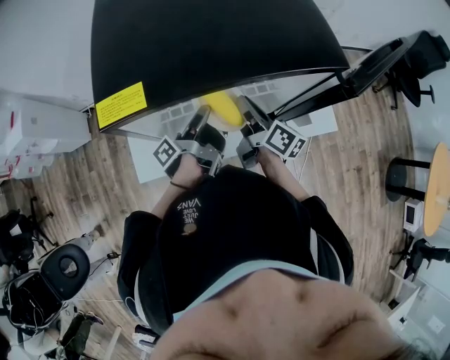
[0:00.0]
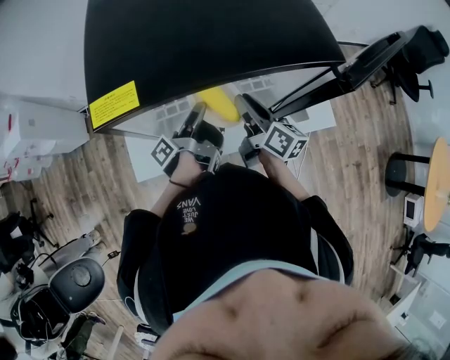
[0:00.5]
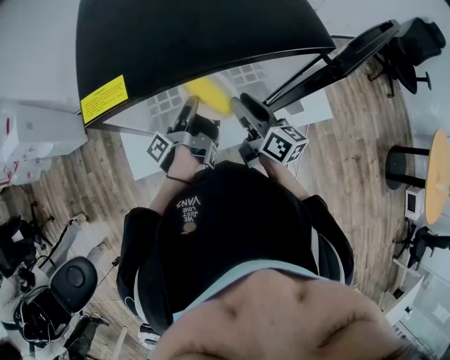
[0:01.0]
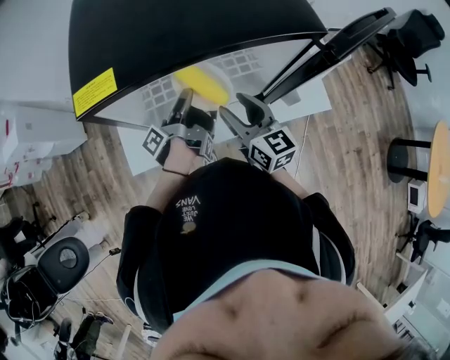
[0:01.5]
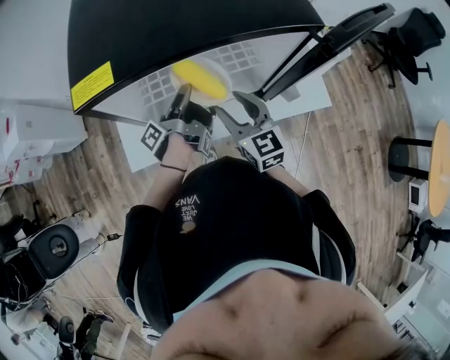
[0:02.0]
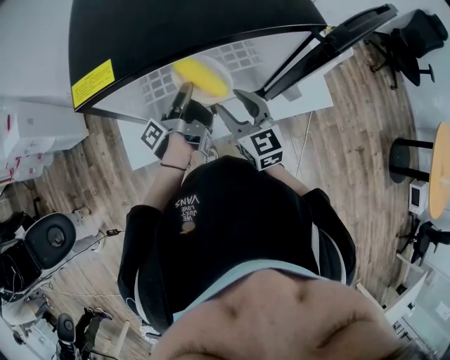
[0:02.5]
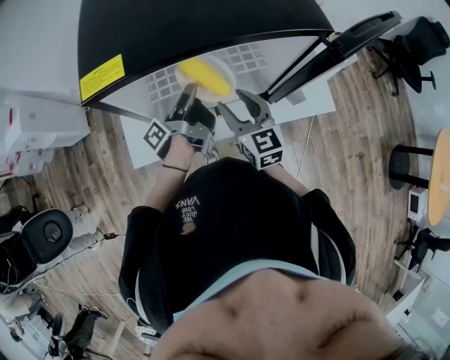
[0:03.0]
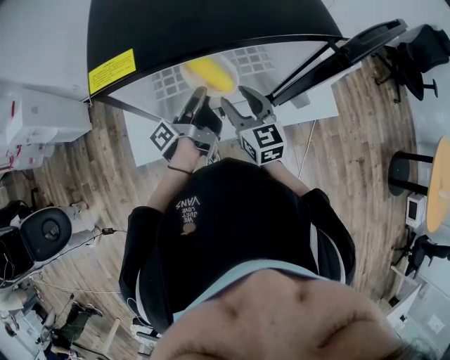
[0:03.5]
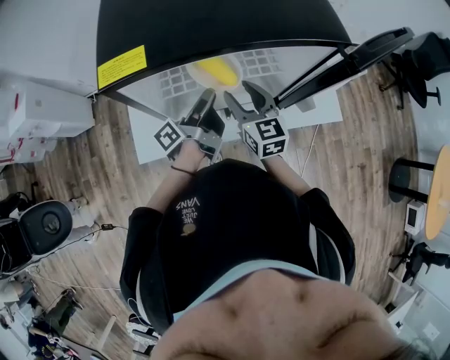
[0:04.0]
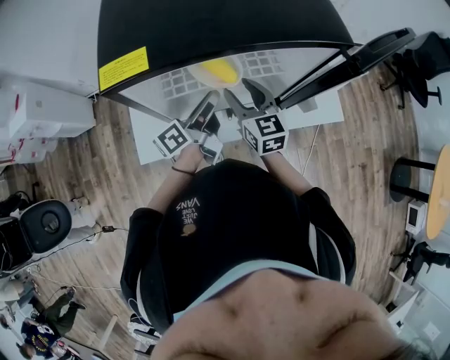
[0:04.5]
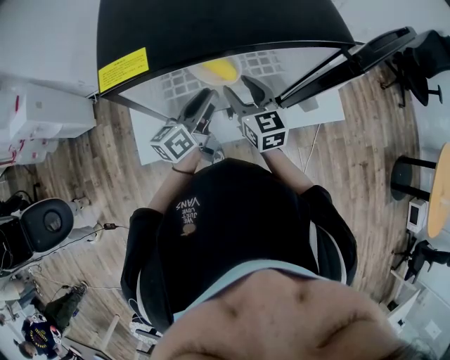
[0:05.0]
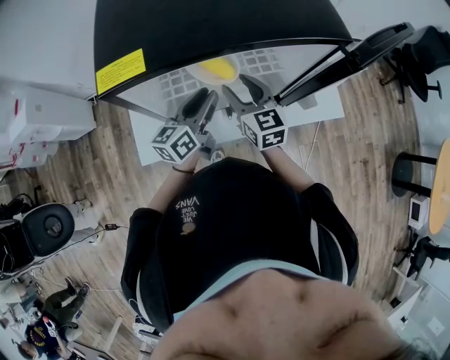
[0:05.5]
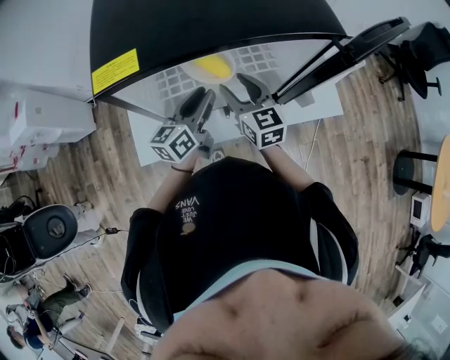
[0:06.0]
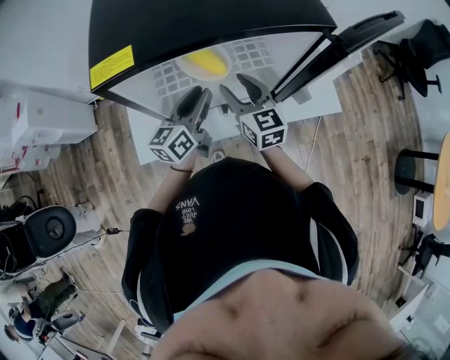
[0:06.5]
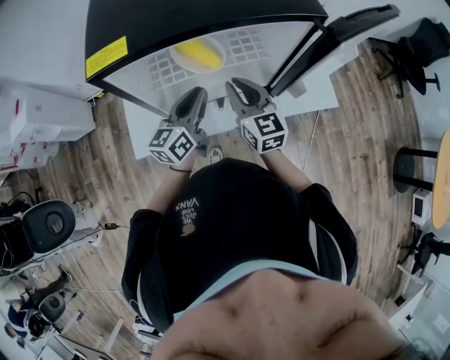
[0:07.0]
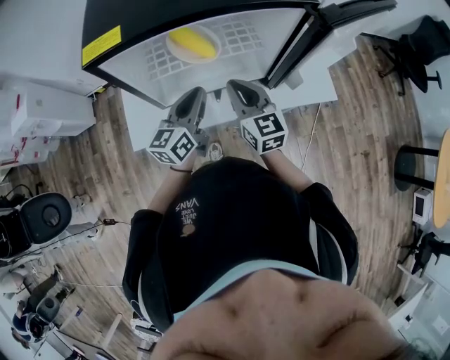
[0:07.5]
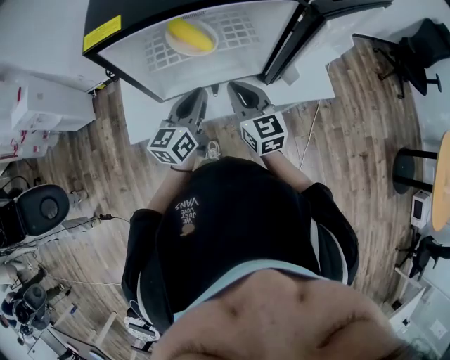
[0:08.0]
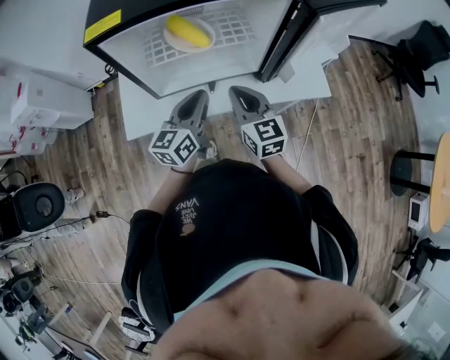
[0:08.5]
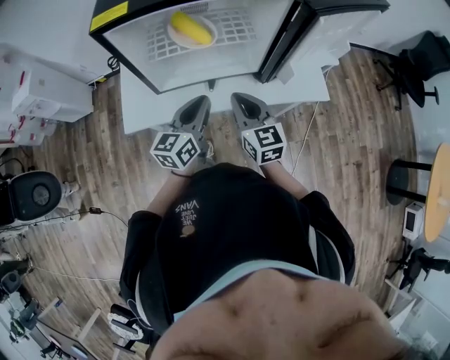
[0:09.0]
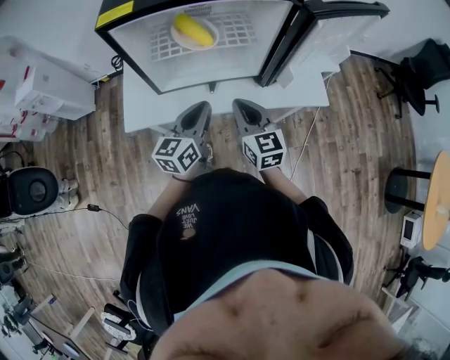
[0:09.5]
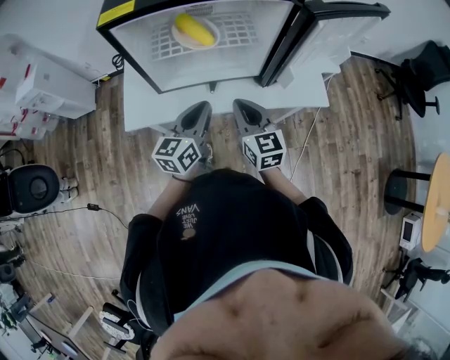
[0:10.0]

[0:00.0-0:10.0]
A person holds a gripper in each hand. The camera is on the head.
0:00.0 to 0:02.0: The right gripper shifts by roughly 10 cm, twists approximately 60 degrees counterclockwise, seen from behind, and opens its fingers.
0:02.0 to 0:04.0: The right gripper moves approximately 5 cm.
0:06.0 to 0:08.0: The right gripper ends up approximately 10 cm from where it was, and closes its fingers.
0:08.0 to 0:10.0: The right gripper ends up about 5 cm from where it was.

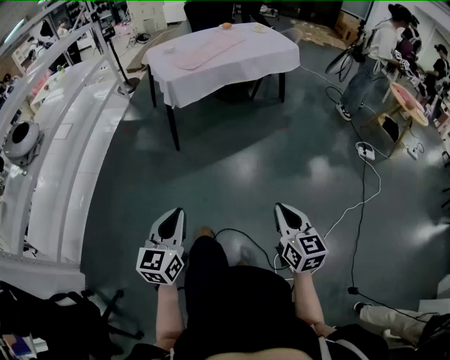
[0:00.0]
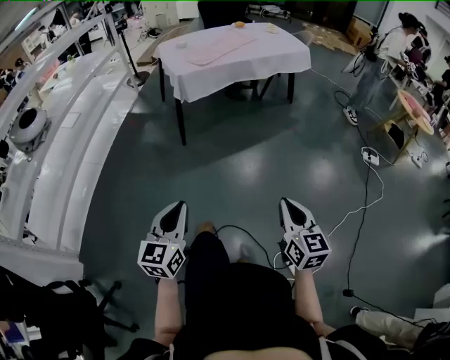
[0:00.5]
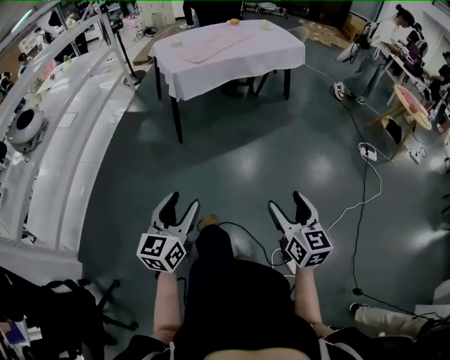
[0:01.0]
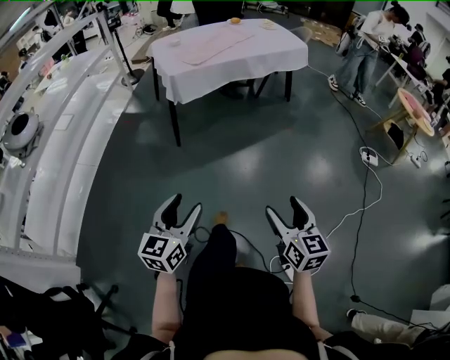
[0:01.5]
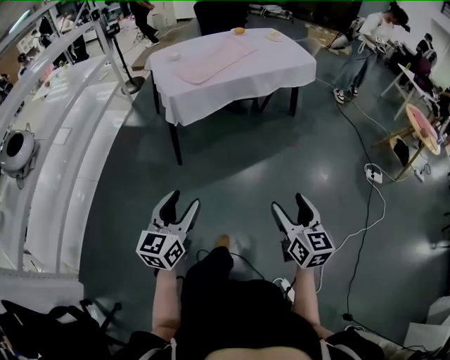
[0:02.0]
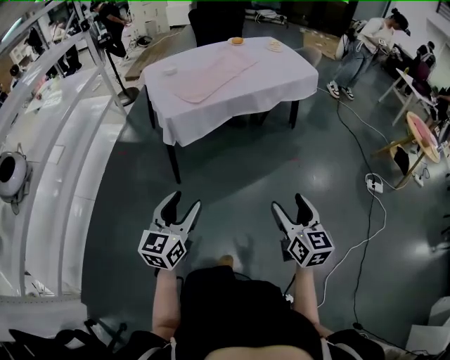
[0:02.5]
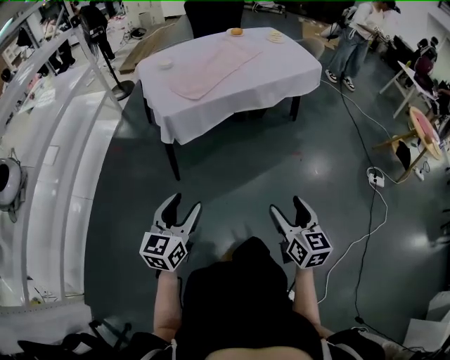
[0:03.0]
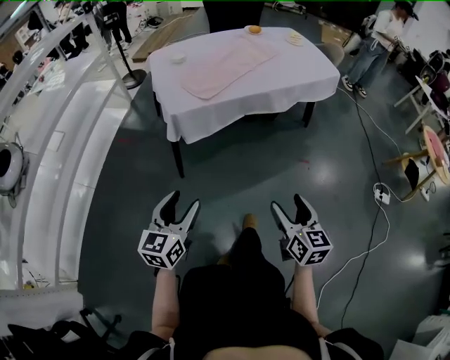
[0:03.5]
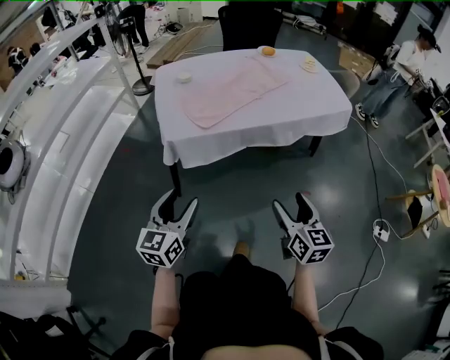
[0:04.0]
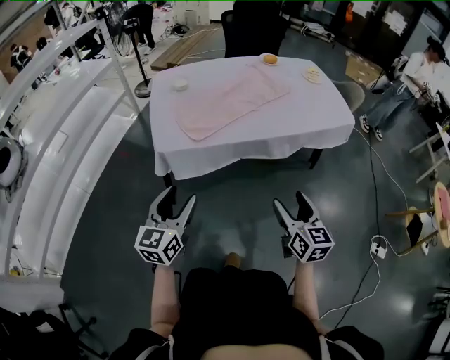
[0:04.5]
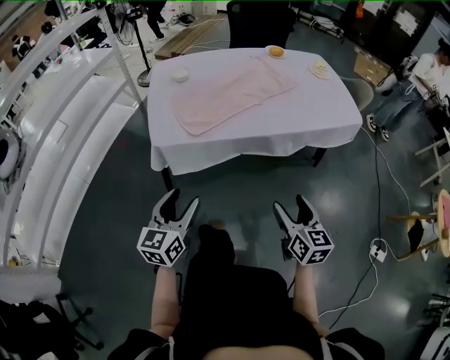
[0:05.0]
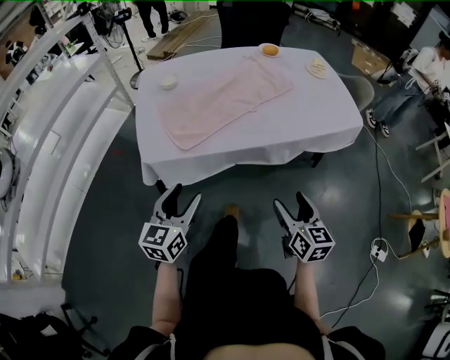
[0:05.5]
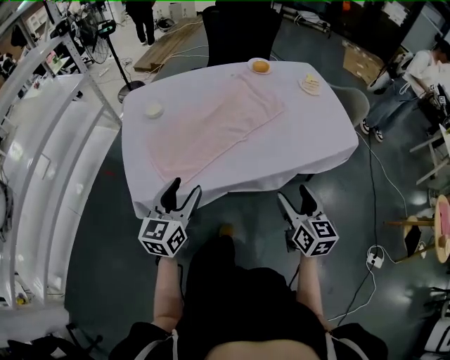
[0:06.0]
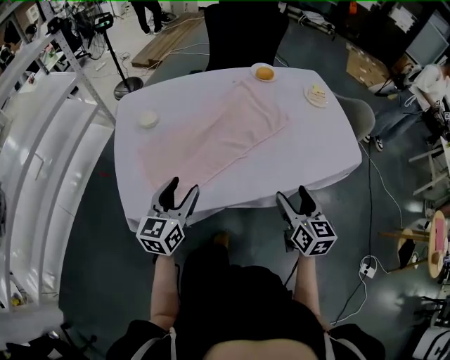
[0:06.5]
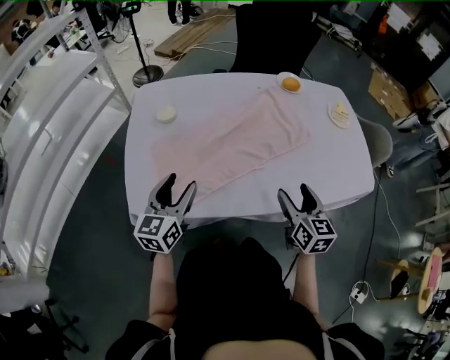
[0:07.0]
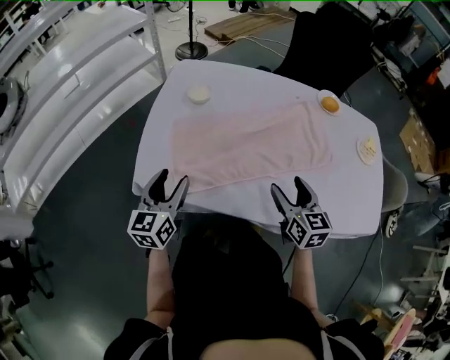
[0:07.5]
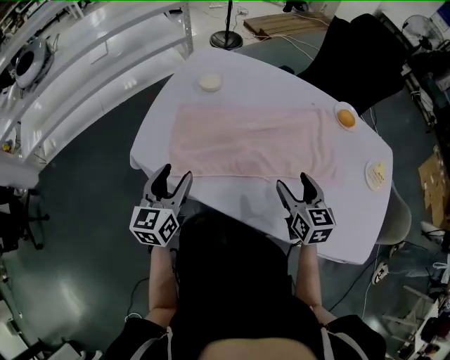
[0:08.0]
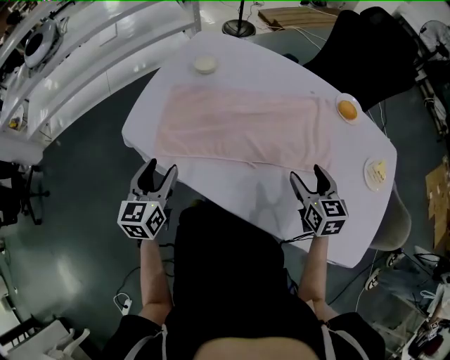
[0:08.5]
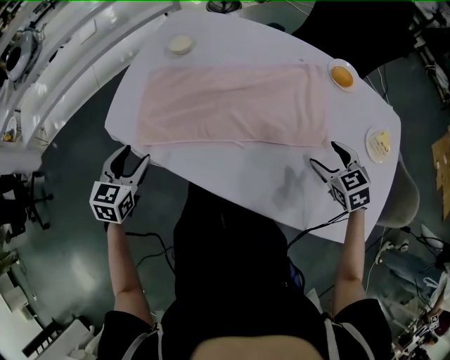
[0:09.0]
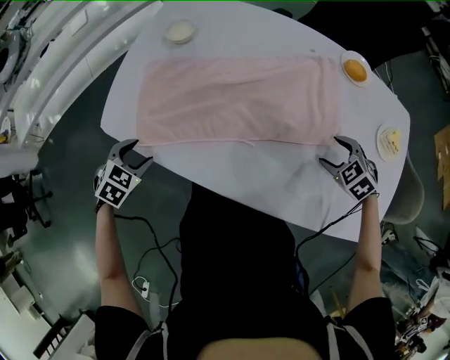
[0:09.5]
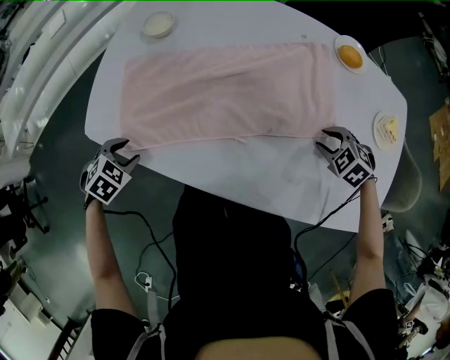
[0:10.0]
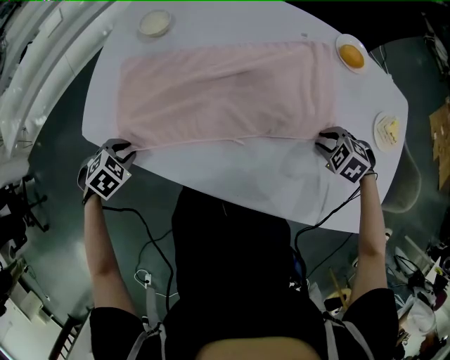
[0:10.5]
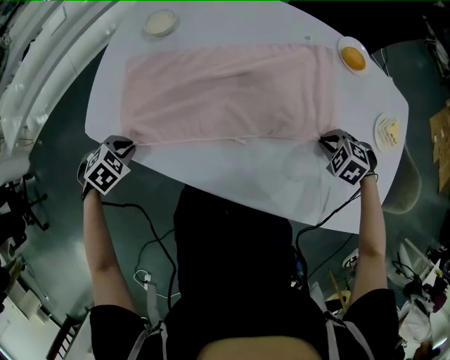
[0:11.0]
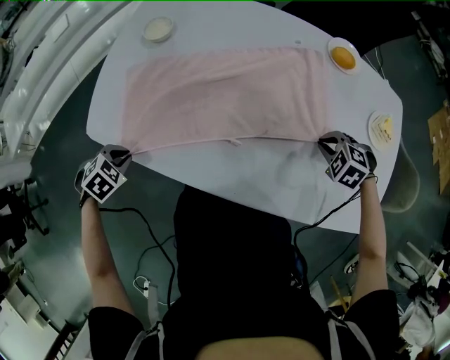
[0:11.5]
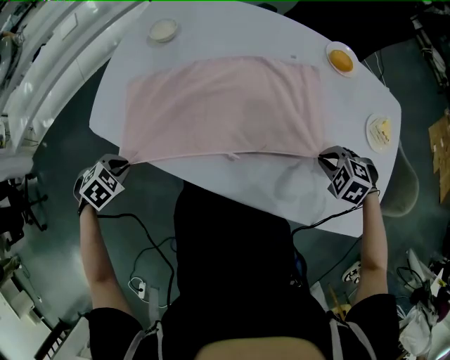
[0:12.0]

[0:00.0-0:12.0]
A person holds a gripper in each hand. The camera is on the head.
0:00.0 to 0:02.0: The grippers both shift forward by roughly 25 cm. The right gripper opens, while the left gripper opens.
0:02.0 to 0:04.0: The two grippers go about 40 cm forward.
0:04.0 to 0:06.0: Both grippers travel together forward, some 35 cm.
0:06.0 to 0:08.0: The left gripper shifts by roughly 10 cm, and rotates roughly 40 degrees, while the right gripper ends up roughly 30 cm from where it was, and changes its angle by roughly 40 degrees.
0:08.0 to 0:10.0: The left gripper travels downward by roughly 20 cm, and tips its fingers downward by some 60 degrees, while the right gripper travels to the right and downward by about 25 cm, points its fingers roughly 40 degrees further downward, and closes.
0:10.0 to 0:12.0: The right gripper changes place by roughly 5 cm, and closes up; the left gripper changes place by about 5 cm, and closes its fingers.

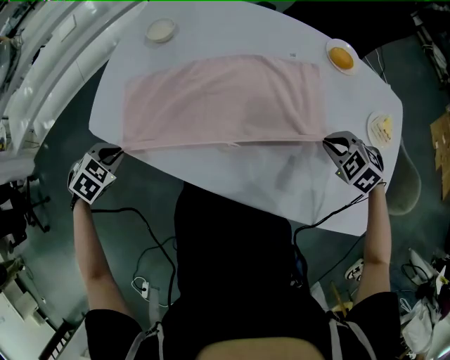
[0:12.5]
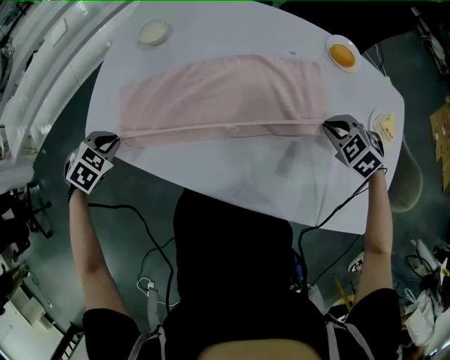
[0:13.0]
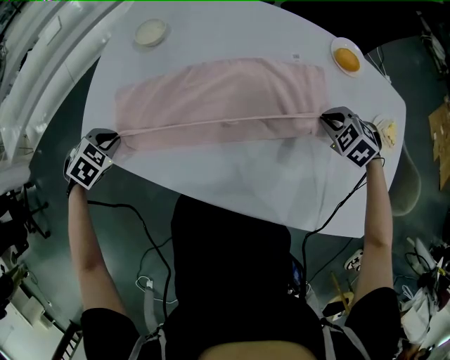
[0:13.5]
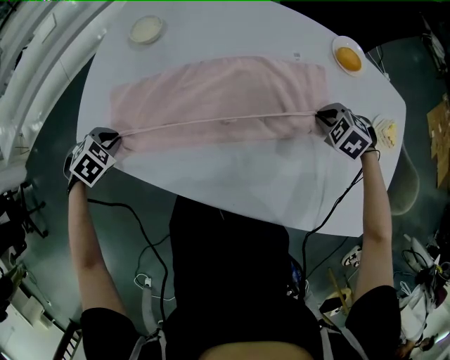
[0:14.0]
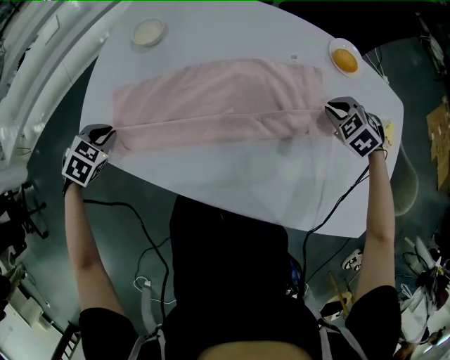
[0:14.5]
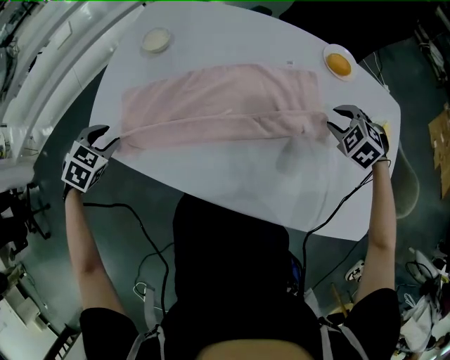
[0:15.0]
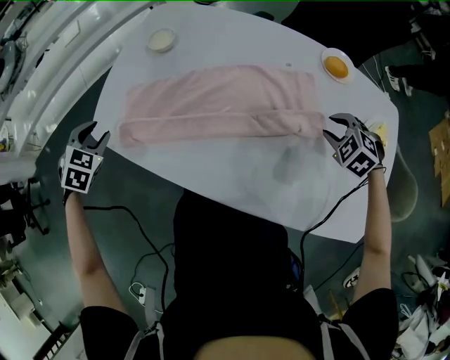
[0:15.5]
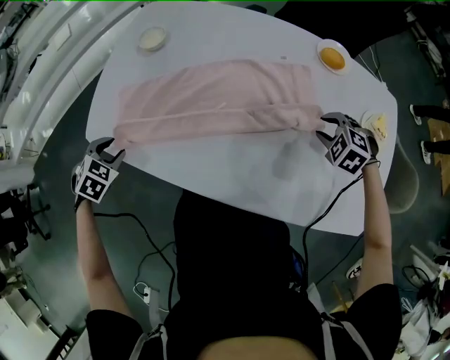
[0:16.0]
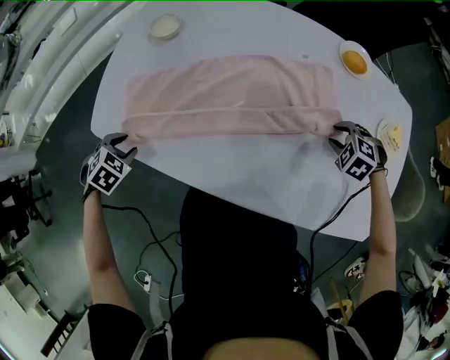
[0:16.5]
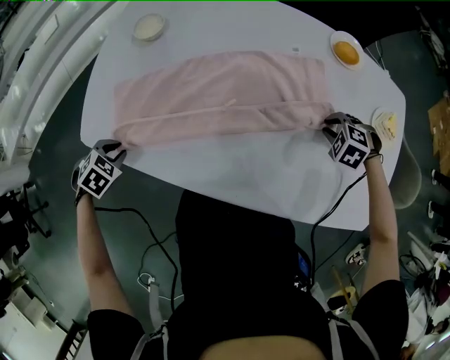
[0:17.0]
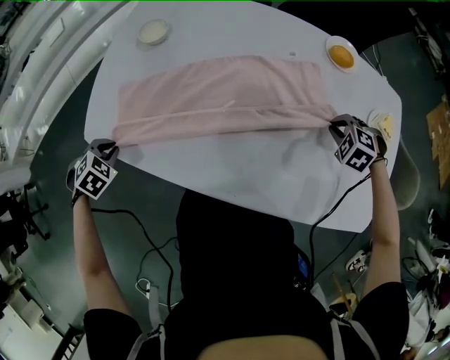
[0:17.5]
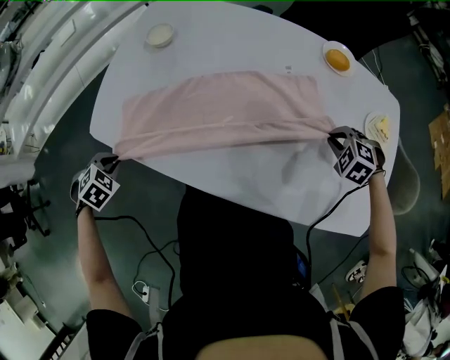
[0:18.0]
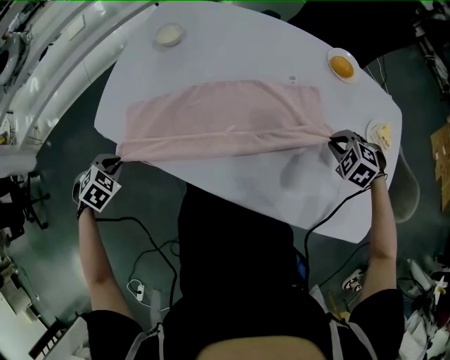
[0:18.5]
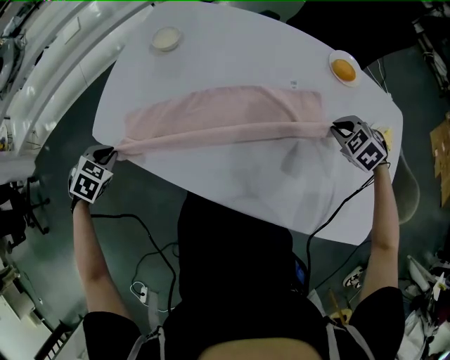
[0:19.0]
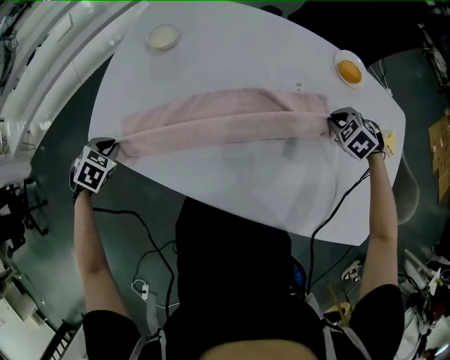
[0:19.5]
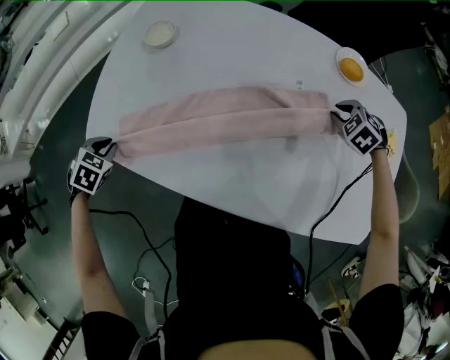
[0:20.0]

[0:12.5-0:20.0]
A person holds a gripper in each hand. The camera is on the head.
0:12.5 to 0:14.5: The left gripper ends up approximately 10 cm from where it was, while the right gripper shifts by approximately 15 cm.
0:14.5 to 0:16.5: The right gripper shifts by approximately 10 cm. The left gripper moves some 10 cm upward and comes back, and opens up.
0:16.5 to 0:18.0: The right gripper ends up some 5 cm from where it was, and closes its fingers; the left gripper moves some 5 cm, and closes.
0:18.0 to 0:20.0: The right gripper moves some 15 cm. Meanwhile the left gripper moves roughly 10 cm.
